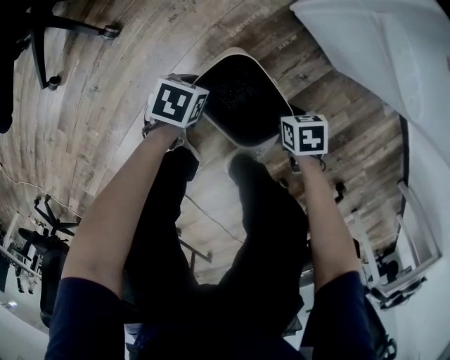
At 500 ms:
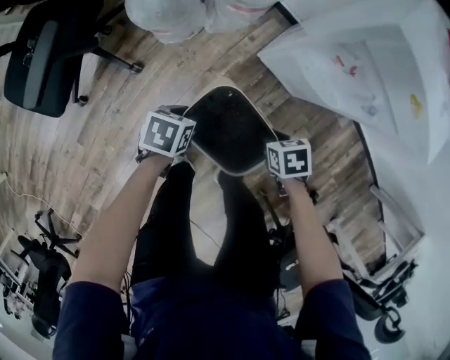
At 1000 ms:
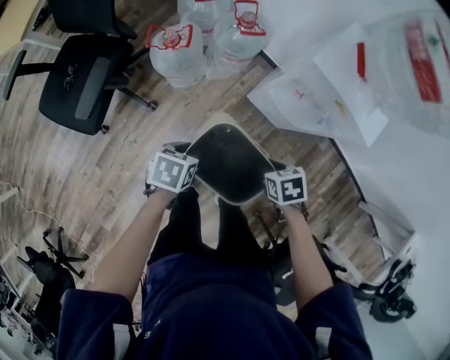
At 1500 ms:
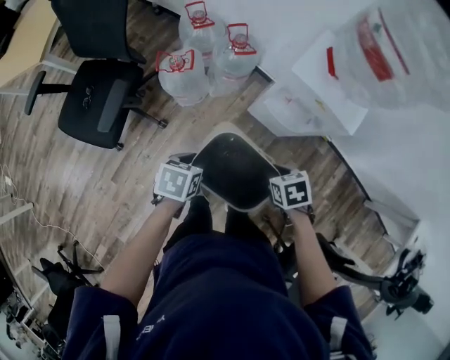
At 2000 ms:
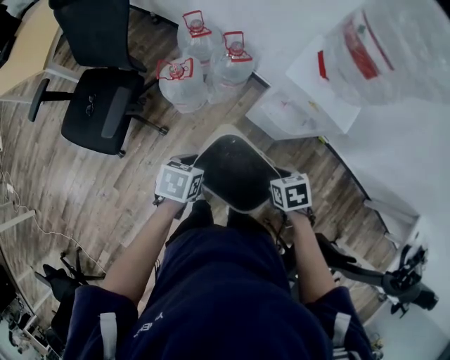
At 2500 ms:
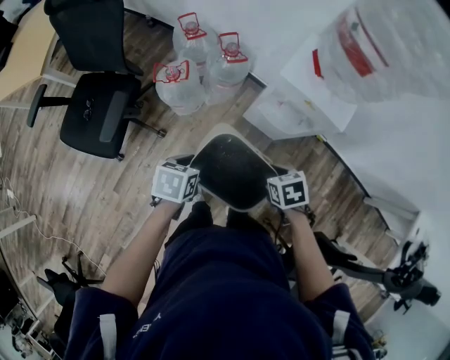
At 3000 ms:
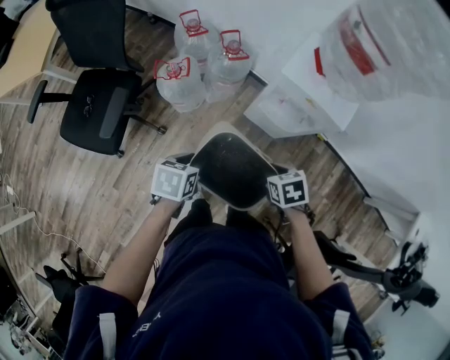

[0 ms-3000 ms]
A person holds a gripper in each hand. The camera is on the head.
0 ms to 1500 ms: The grippers both shift upward by roughly 60 cm.
1500 ms to 3000 ms: There are only small adjustments of the grippers.

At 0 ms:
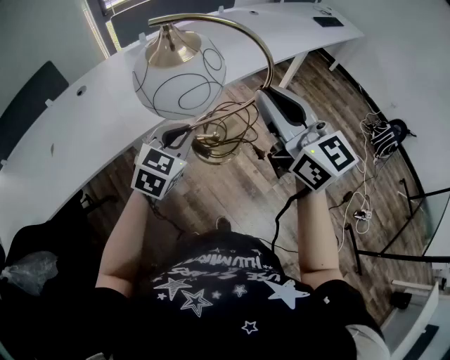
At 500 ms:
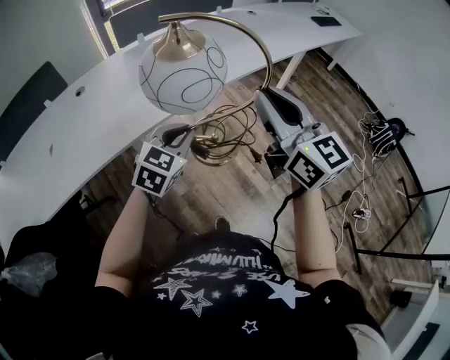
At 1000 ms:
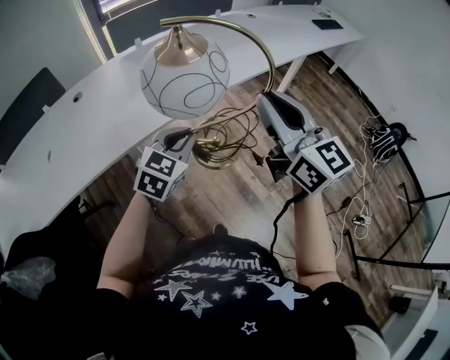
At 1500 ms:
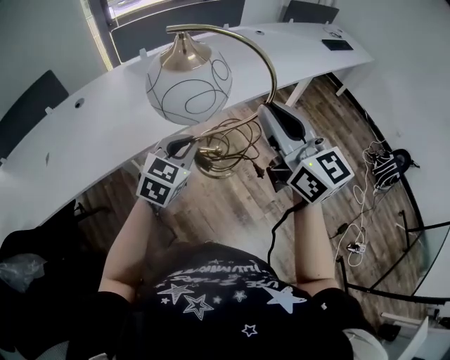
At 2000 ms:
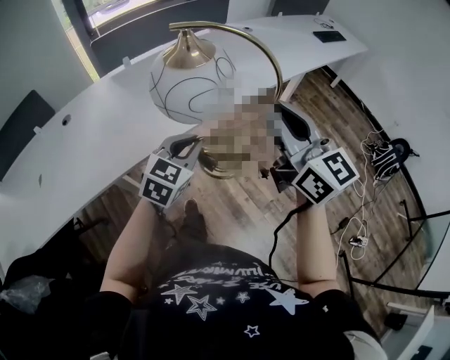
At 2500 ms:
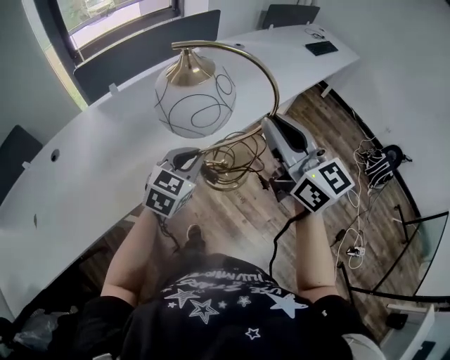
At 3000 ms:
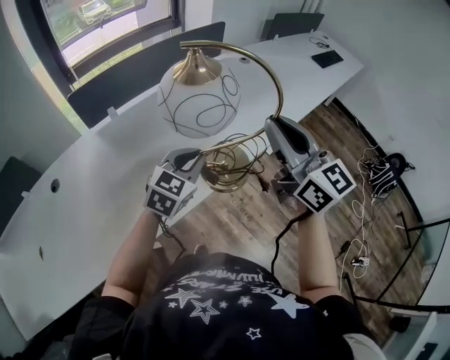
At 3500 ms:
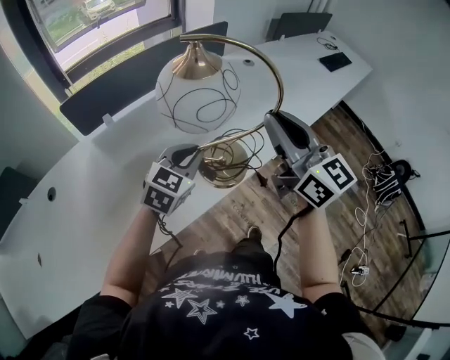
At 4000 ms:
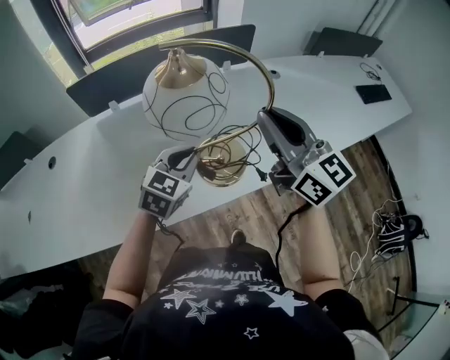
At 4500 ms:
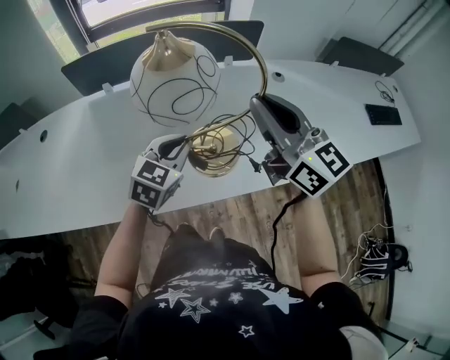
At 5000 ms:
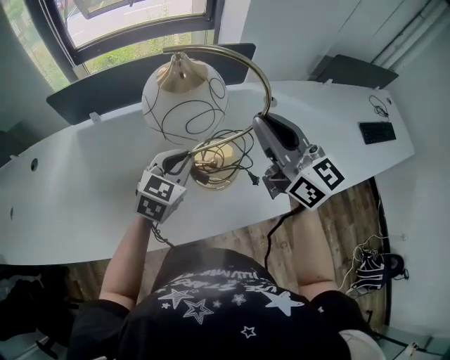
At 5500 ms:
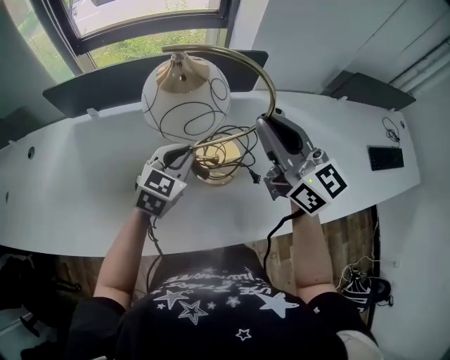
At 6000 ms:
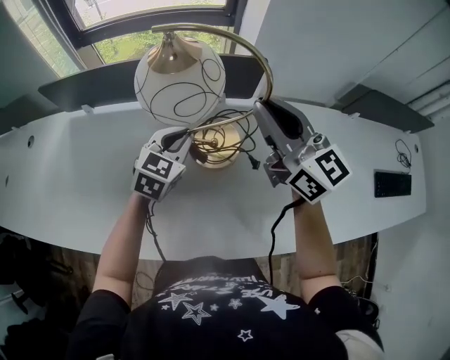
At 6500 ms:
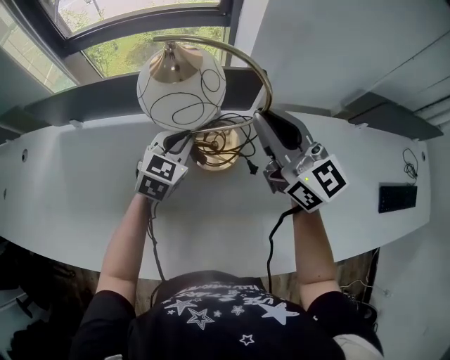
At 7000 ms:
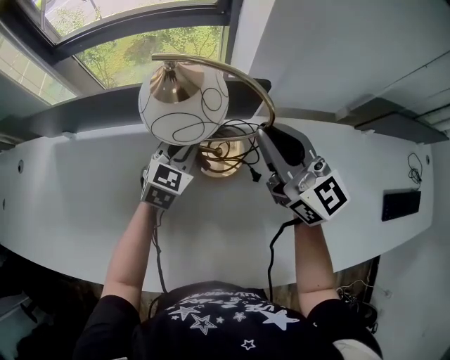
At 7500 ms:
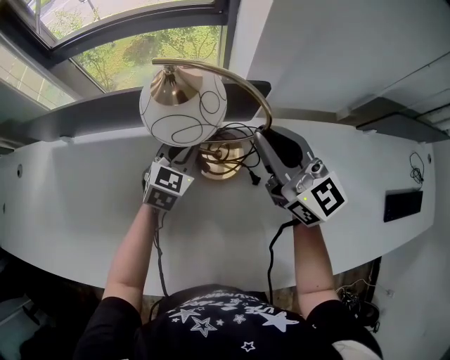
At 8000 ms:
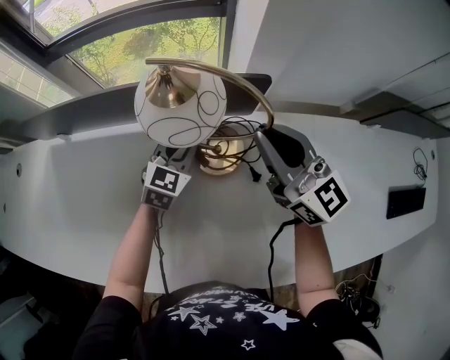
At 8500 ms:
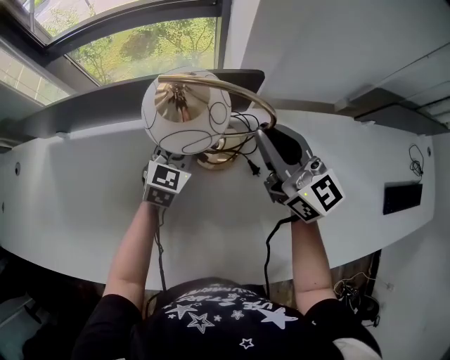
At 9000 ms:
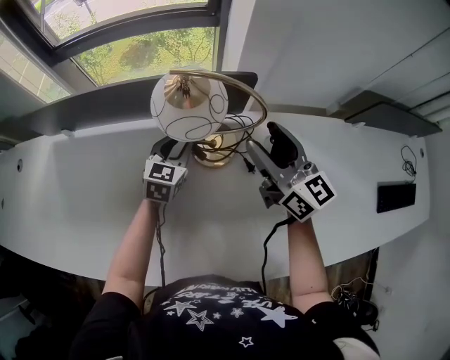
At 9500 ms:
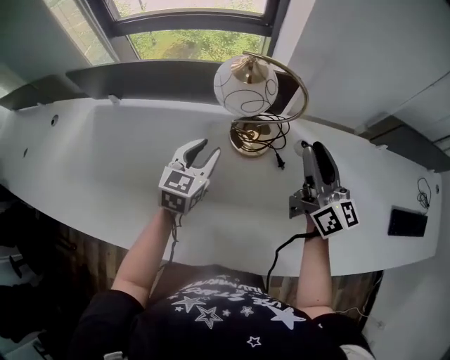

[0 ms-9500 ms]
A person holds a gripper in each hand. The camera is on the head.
0 ms to 2000 ms: The grippers both shift forward and to the right by about 15 cm.
2000 ms to 4000 ms: The two grippers go roughly 40 cm forward.
4000 ms to 5500 ms: Both grippers move forward and to the right, approximately 20 cm.
5500 ms to 7500 ms: Both grippers travel together forward, to the right and downward, about 25 cm.
7500 ms to 9500 ms: The left gripper moves backward, upward and to the left, some 15 cm, and opens, while the right gripper goes roughly 10 cm backward and to the right, changes its angle by roughly 20 degrees, and opens its fingers.

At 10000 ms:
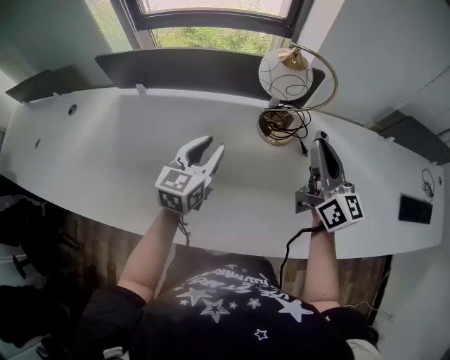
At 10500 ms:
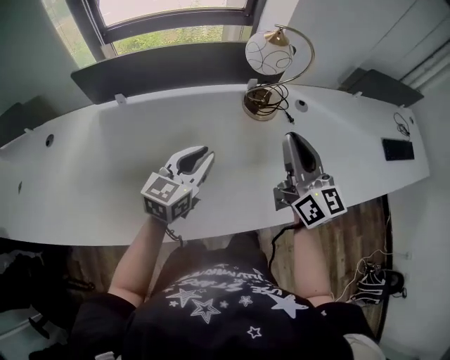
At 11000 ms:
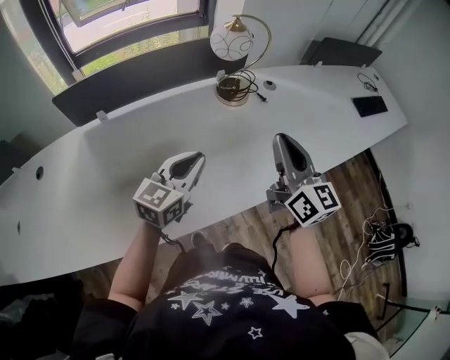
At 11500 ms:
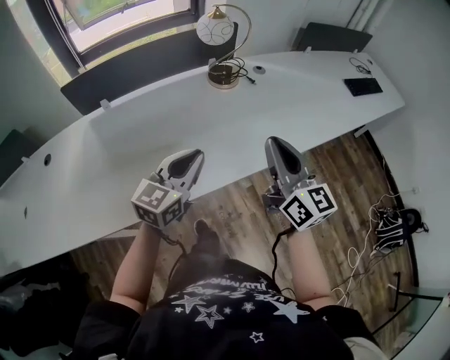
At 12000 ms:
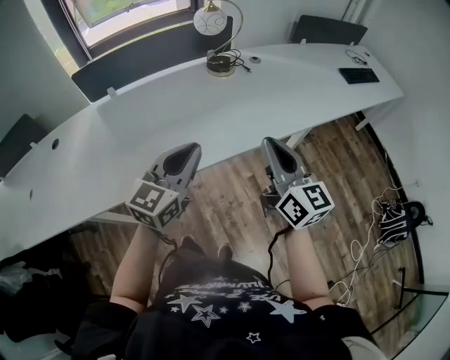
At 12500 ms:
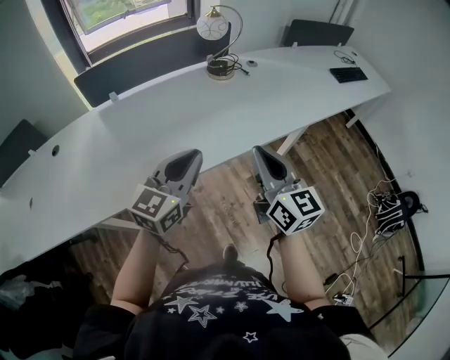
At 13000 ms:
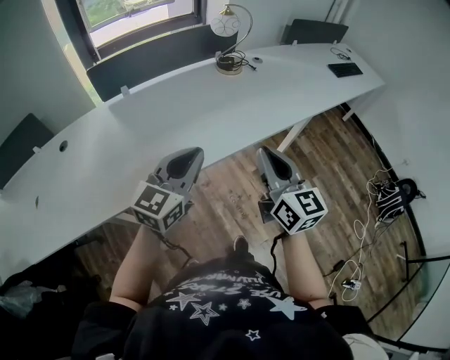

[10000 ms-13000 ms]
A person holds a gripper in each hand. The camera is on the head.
10000 ms to 11500 ms: The right gripper moves some 35 cm, and turns by roughly 20 degrees. The left gripper changes place by some 25 cm, turns by roughly 40 degrees, and closes up.
11500 ms to 13000 ms: Both grippers move backward and to the left, roughly 20 cm.

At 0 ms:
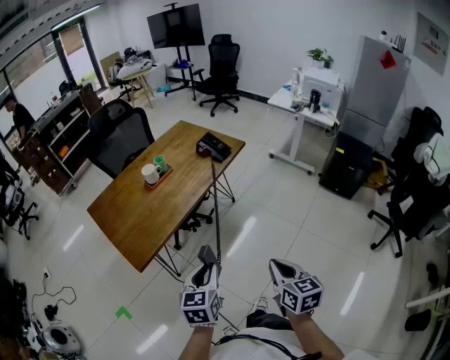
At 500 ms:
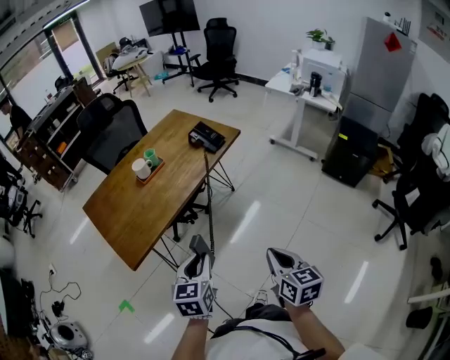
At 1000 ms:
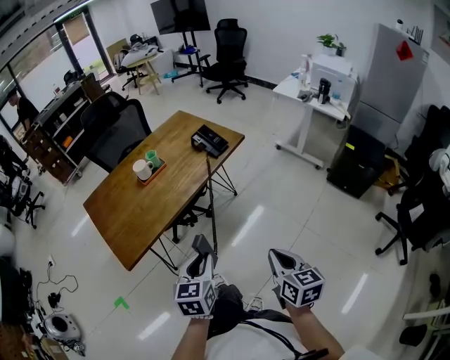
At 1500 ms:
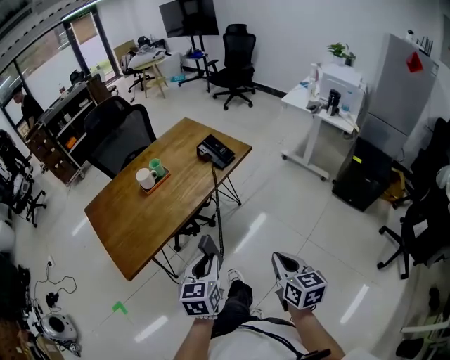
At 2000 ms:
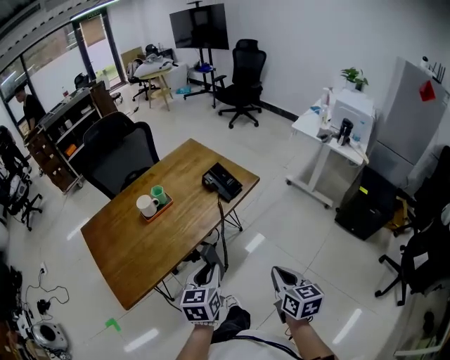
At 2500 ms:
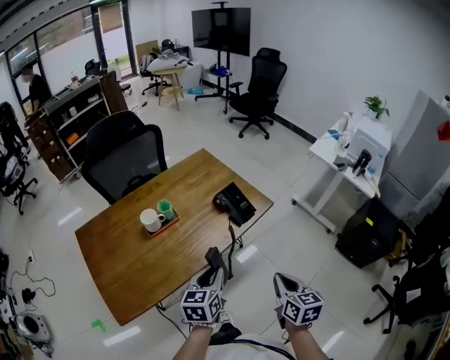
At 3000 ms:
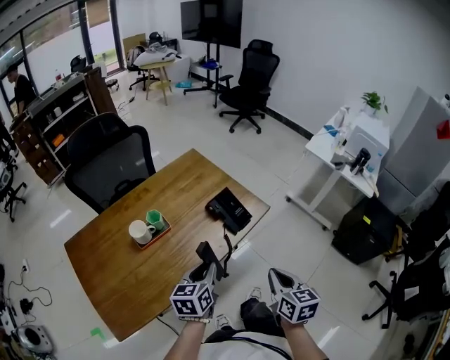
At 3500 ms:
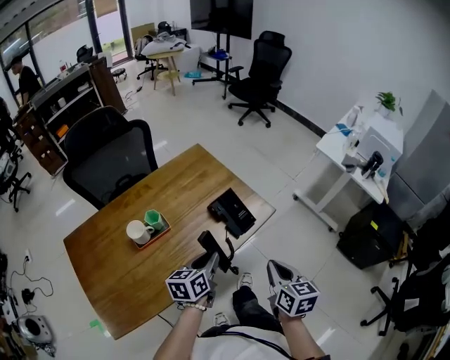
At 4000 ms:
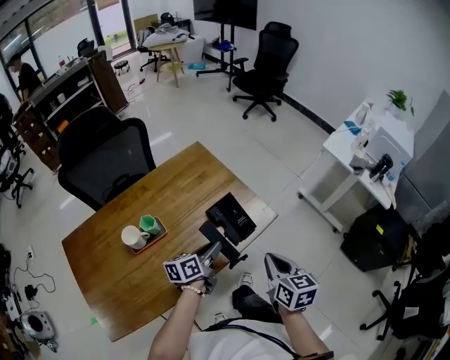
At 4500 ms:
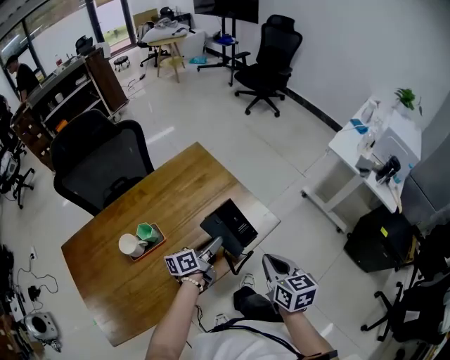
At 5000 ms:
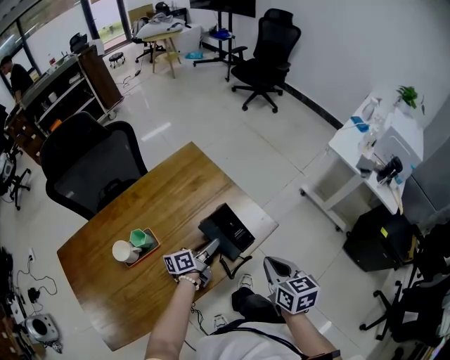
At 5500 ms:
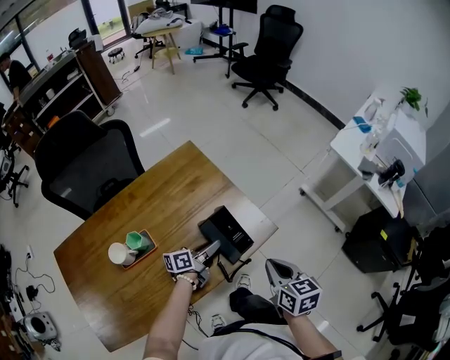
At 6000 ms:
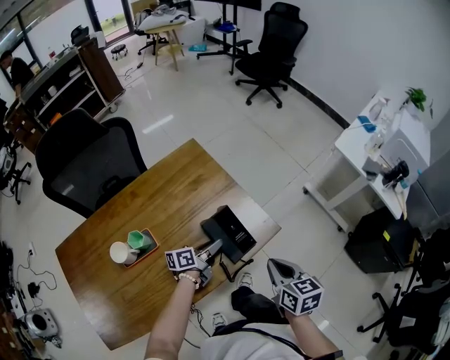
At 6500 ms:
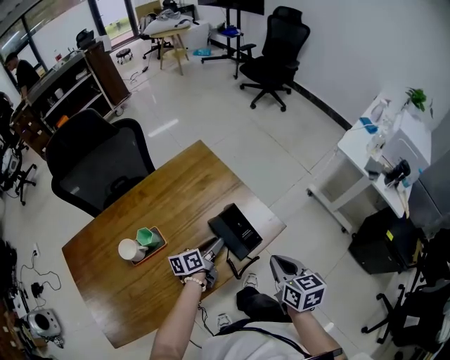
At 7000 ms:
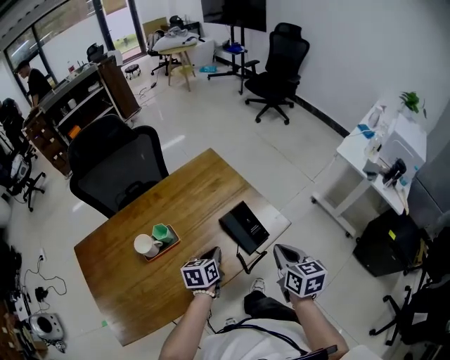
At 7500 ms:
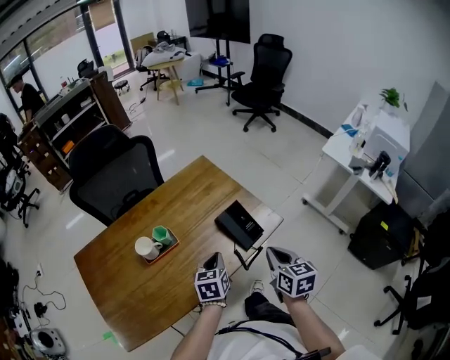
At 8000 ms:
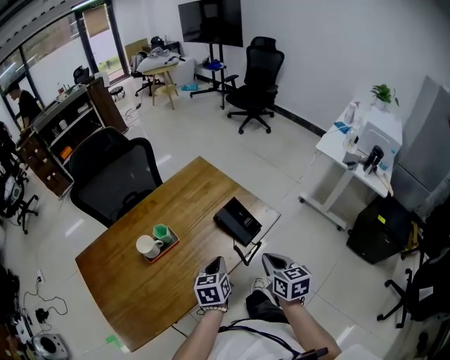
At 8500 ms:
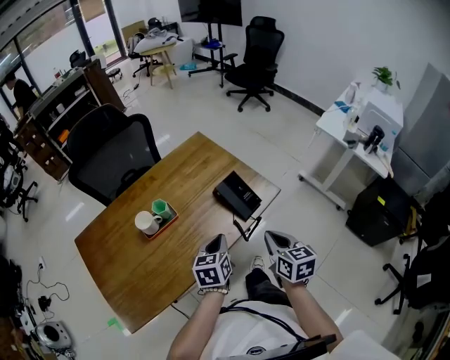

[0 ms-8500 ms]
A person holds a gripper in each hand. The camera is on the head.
0 ms to 2000 ms: The grippers both shift forward by approximately 25 cm.
2000 ms to 4000 ms: The grippers both shift forward by roughly 30 cm. The left gripper changes its angle by roughly 40 degrees.
4000 ms to 6500 ms: The left gripper heads downward and forward, covering roughly 10 cm; the right gripper moves forward, approximately 5 cm.
6500 ms to 8500 ms: The left gripper is displaced backward and upward by some 20 cm, turns by some 40 degrees, and closes up. Meanwhile the right gripper heads backward, covering approximately 10 cm.

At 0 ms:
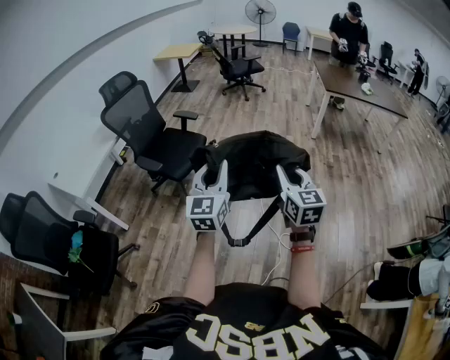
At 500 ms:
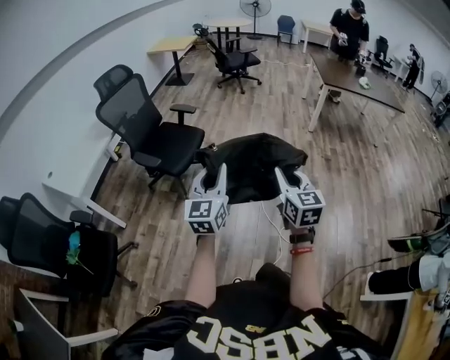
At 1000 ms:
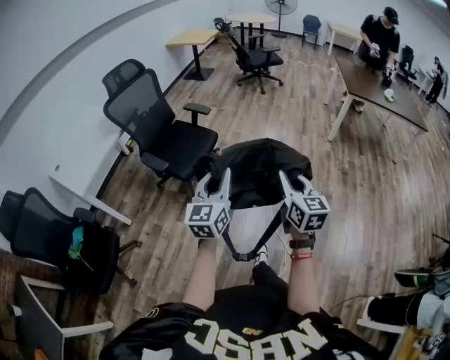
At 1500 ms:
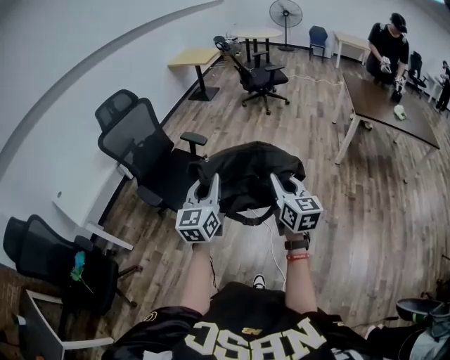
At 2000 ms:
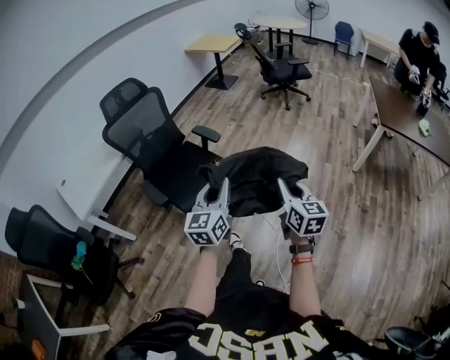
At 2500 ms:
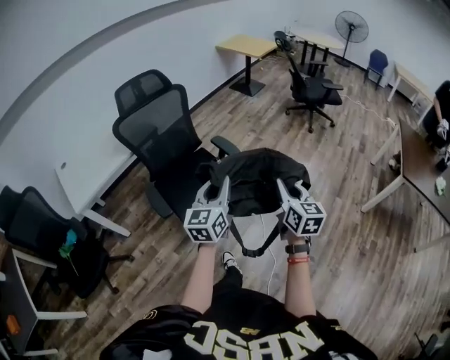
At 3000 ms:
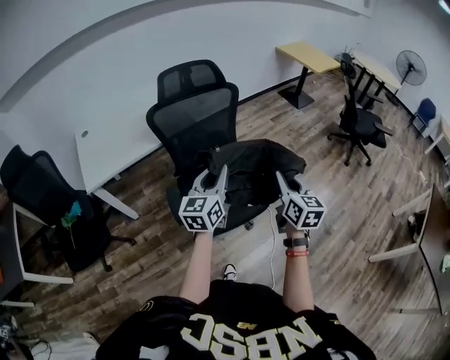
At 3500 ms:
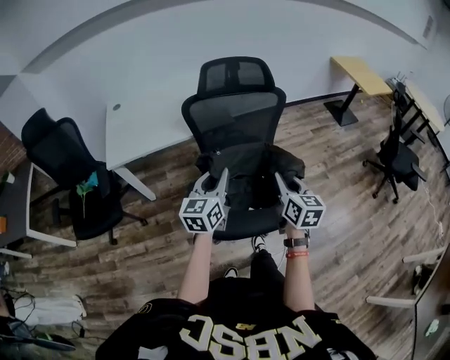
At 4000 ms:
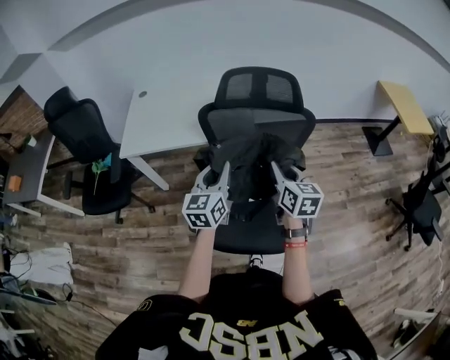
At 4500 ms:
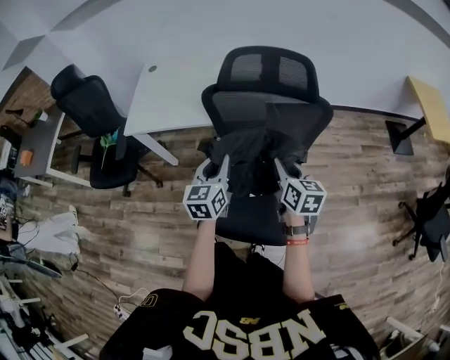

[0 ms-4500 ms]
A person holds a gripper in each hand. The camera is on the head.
0 ms to 2000 ms: The two grippers go roughly 40 cm forward. The right gripper swivels approximately 20 degrees.
2000 ms to 4500 ms: Both grippers are carried roughly 70 cm. The right gripper turns by approximately 60 degrees. The left gripper rotates roughly 60 degrees.
